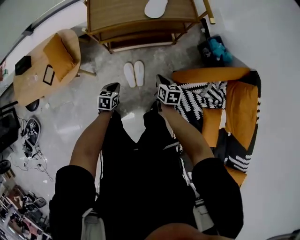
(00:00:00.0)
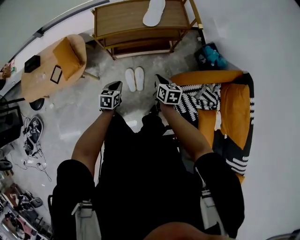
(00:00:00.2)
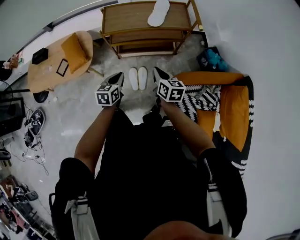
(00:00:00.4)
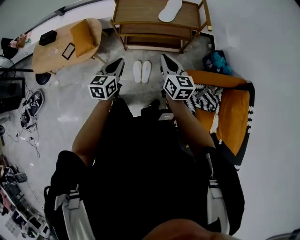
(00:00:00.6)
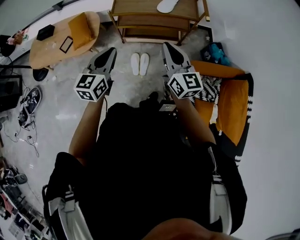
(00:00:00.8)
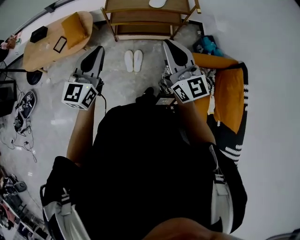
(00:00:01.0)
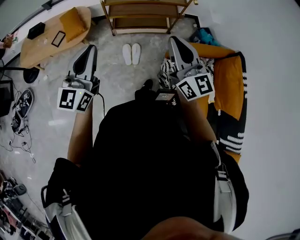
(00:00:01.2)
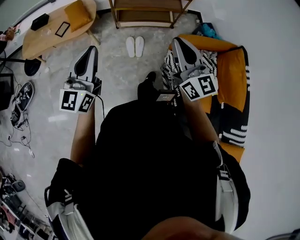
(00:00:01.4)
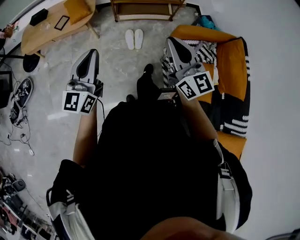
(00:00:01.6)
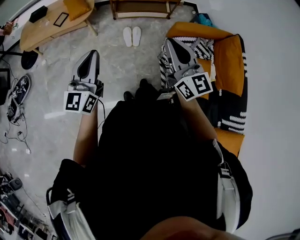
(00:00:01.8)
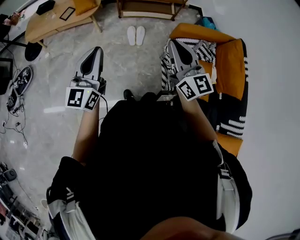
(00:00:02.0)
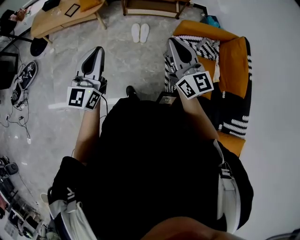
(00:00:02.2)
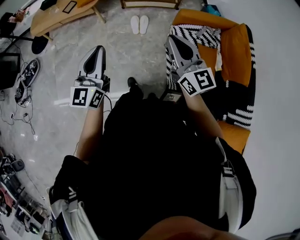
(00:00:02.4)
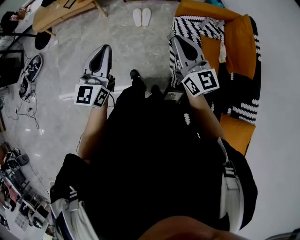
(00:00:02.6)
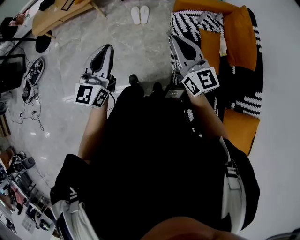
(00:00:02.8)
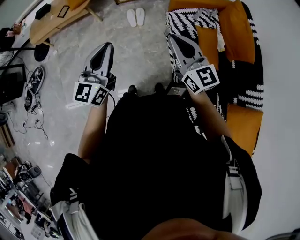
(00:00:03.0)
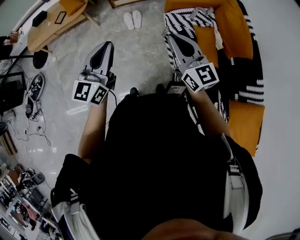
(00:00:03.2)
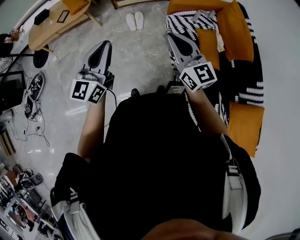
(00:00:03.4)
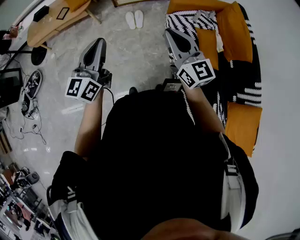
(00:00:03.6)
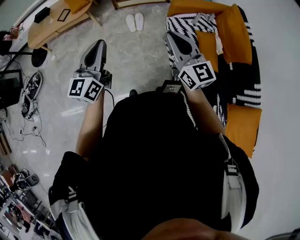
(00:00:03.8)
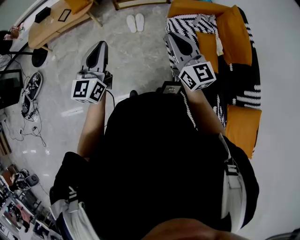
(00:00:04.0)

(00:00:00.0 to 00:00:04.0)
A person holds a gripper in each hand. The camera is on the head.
00:00:00.0 - 00:00:01.4: The two grippers go roughly 60 cm upward and backward. The left gripper tips its fingers upward by some 60 degrees. Meanwhile the right gripper angles its fingers upward, by about 60 degrees.
00:00:01.4 - 00:00:02.6: The two grippers go some 25 cm backward.
00:00:02.6 - 00:00:04.0: The right gripper shifts by some 5 cm.

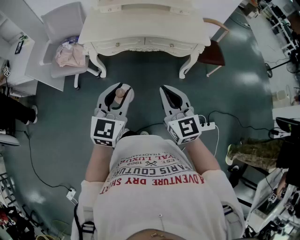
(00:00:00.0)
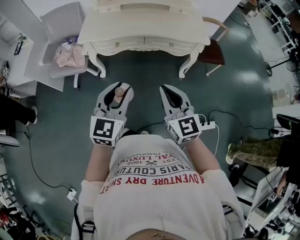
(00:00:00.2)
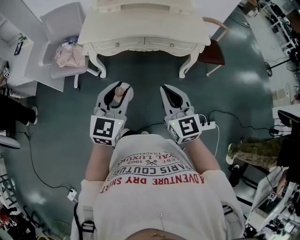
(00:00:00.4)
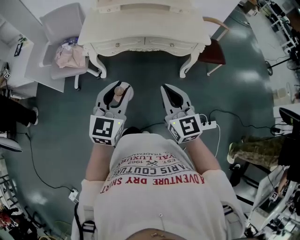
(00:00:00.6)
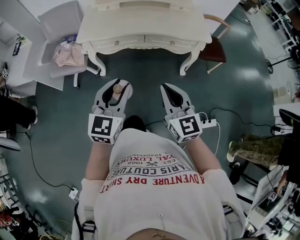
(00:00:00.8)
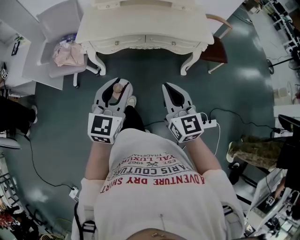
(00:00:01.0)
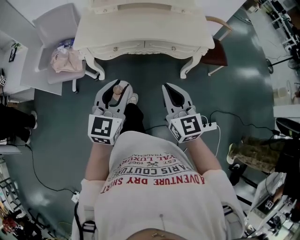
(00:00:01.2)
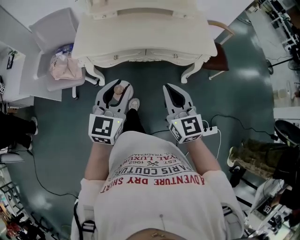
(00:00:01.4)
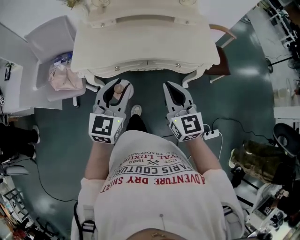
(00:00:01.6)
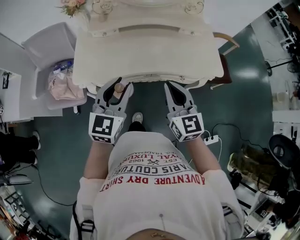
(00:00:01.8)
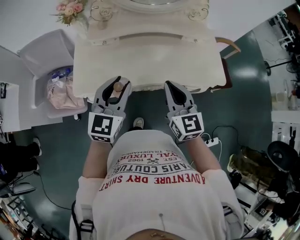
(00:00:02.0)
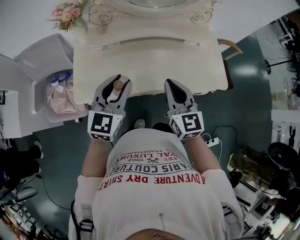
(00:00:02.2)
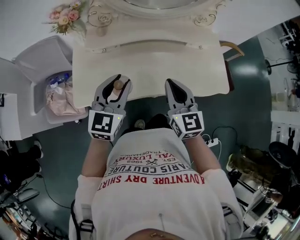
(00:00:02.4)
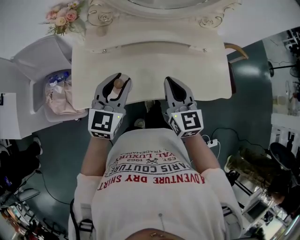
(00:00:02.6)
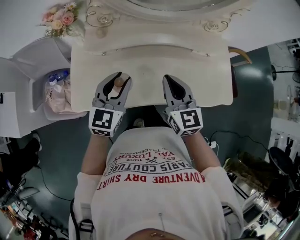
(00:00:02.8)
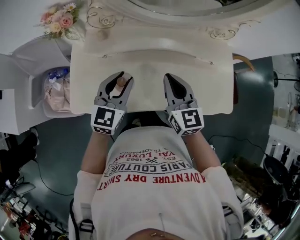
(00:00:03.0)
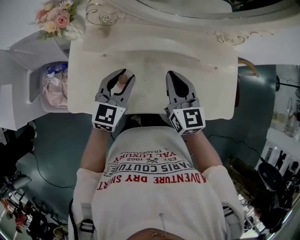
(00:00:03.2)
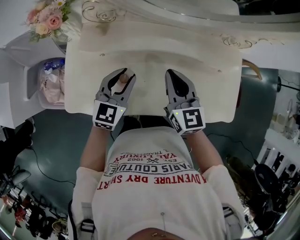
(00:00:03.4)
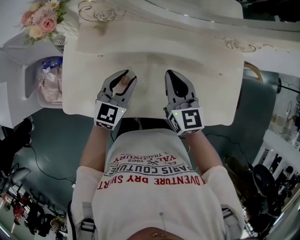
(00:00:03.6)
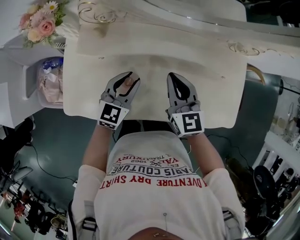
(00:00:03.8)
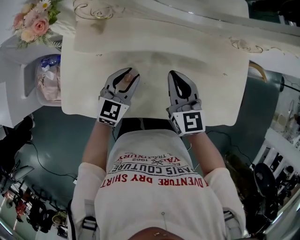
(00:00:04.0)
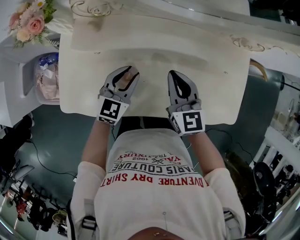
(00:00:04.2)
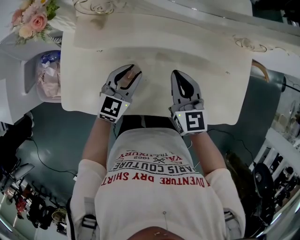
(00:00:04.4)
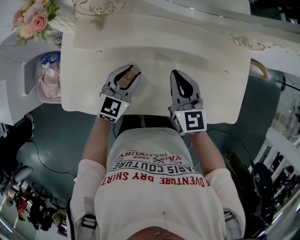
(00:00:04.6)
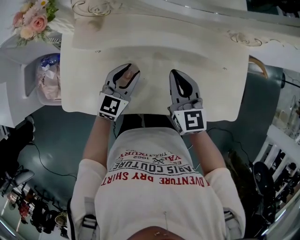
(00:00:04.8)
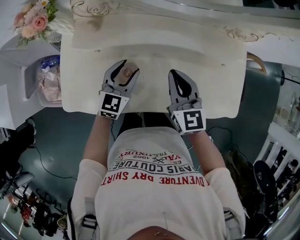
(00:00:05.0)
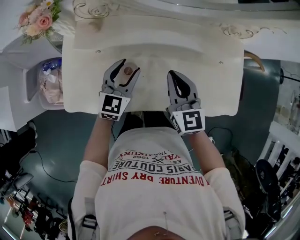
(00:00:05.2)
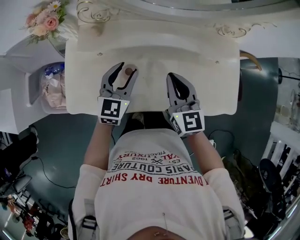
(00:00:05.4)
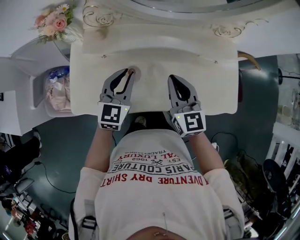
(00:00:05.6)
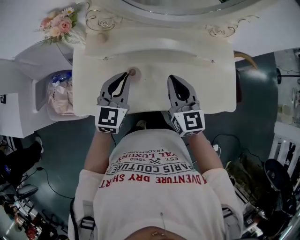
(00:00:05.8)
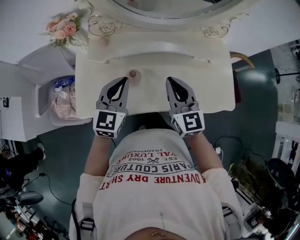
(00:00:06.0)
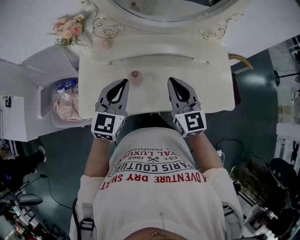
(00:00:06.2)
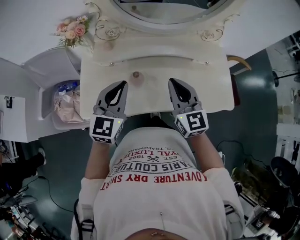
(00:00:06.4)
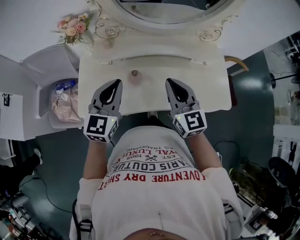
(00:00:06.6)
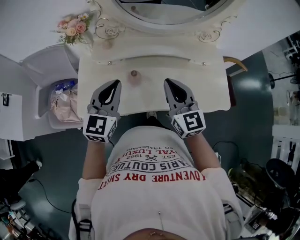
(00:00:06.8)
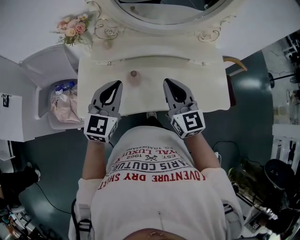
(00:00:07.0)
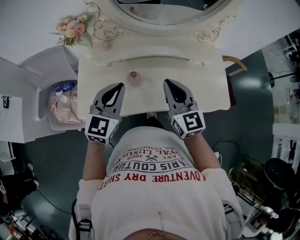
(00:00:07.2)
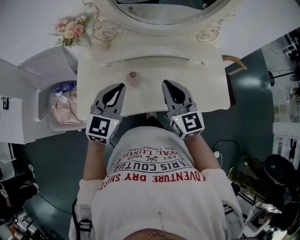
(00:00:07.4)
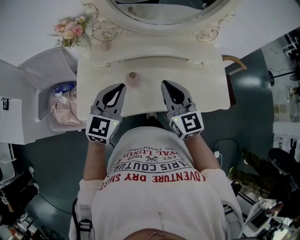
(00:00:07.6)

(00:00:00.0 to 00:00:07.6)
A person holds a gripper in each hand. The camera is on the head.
00:00:00.0 - 00:00:01.6: The grippers both shift forward by approximately 25 cm.
00:00:01.6 - 00:00:03.0: The two grippers go about 40 cm forward.
00:00:03.0 - 00:00:04.6: The left gripper moves downward, about 15 cm, while the right gripper is displaced downward and forward by about 10 cm.
00:00:04.6 - 00:00:06.0: The two grippers go some 15 cm upward and backward. The left gripper closes up.
00:00:06.0 - 00:00:07.6: The left gripper changes place by about 5 cm. Meanwhile the right gripper moves about 5 cm.

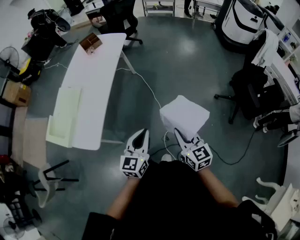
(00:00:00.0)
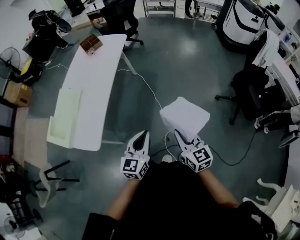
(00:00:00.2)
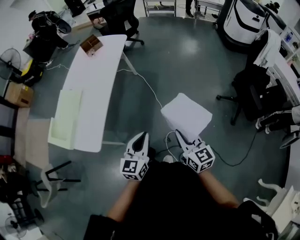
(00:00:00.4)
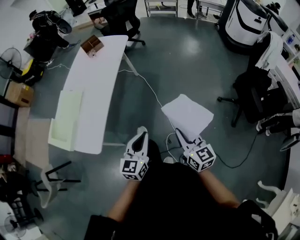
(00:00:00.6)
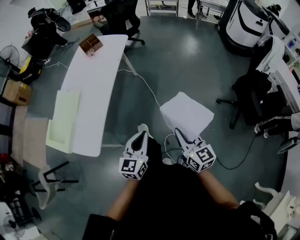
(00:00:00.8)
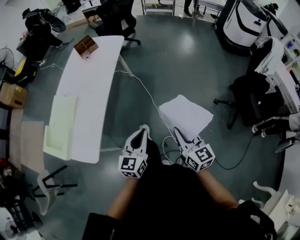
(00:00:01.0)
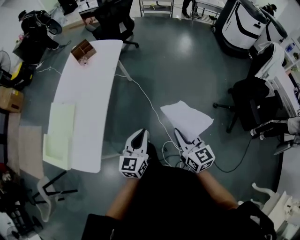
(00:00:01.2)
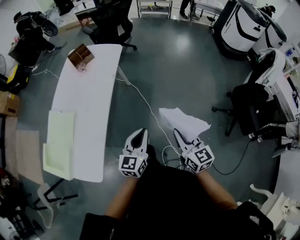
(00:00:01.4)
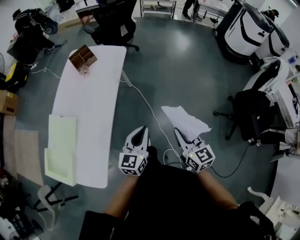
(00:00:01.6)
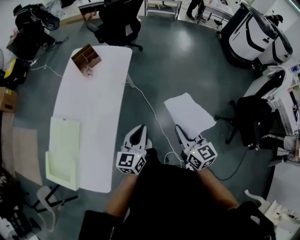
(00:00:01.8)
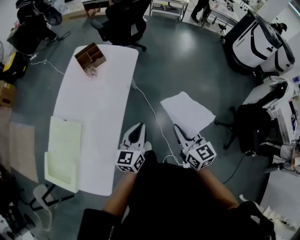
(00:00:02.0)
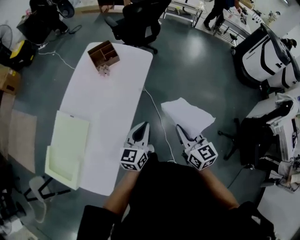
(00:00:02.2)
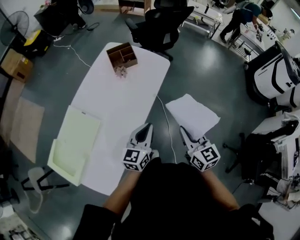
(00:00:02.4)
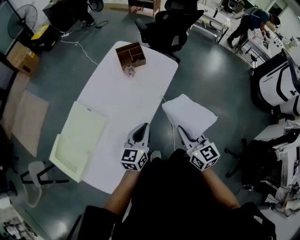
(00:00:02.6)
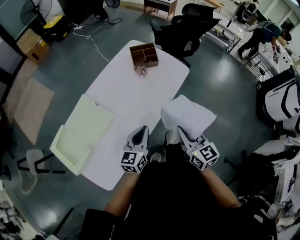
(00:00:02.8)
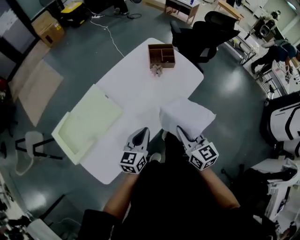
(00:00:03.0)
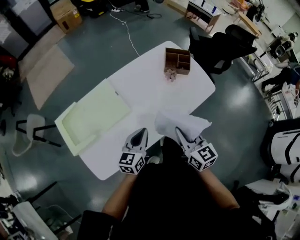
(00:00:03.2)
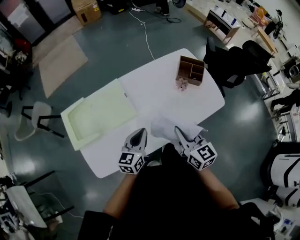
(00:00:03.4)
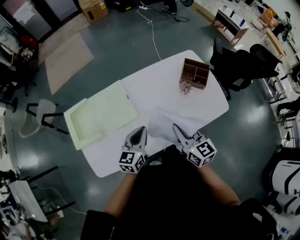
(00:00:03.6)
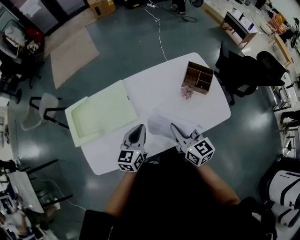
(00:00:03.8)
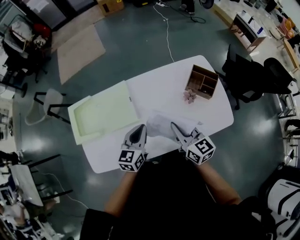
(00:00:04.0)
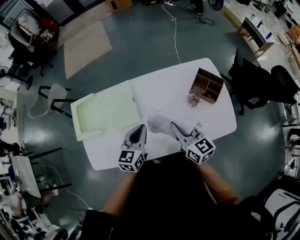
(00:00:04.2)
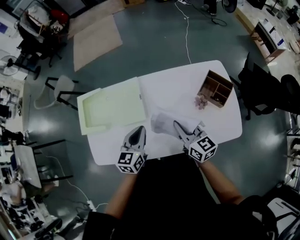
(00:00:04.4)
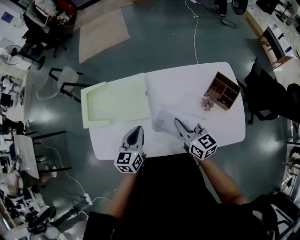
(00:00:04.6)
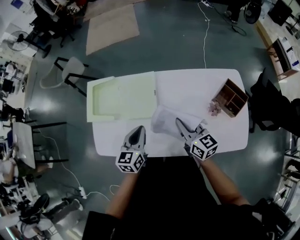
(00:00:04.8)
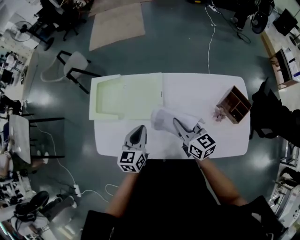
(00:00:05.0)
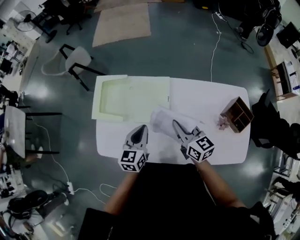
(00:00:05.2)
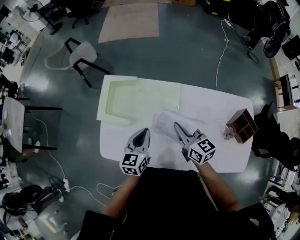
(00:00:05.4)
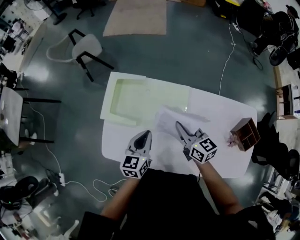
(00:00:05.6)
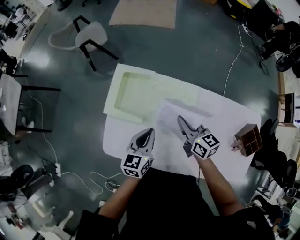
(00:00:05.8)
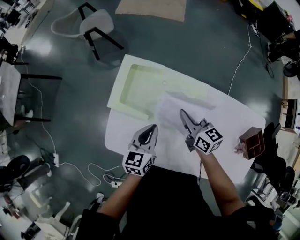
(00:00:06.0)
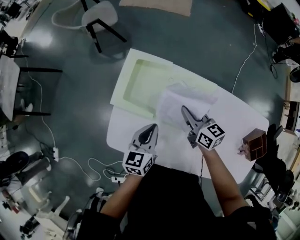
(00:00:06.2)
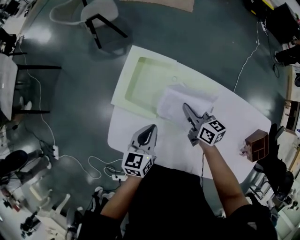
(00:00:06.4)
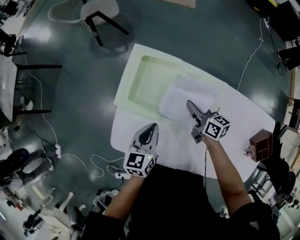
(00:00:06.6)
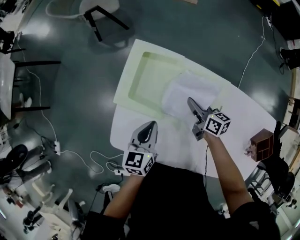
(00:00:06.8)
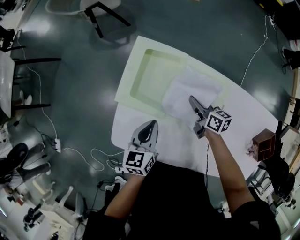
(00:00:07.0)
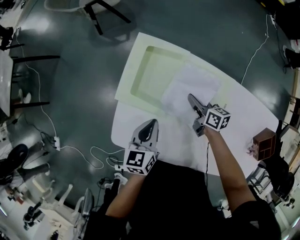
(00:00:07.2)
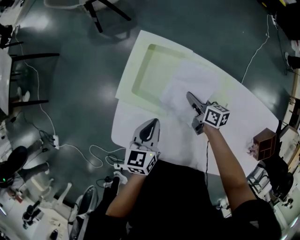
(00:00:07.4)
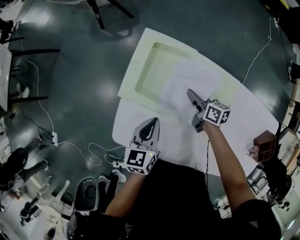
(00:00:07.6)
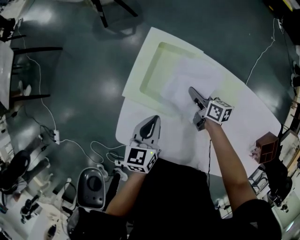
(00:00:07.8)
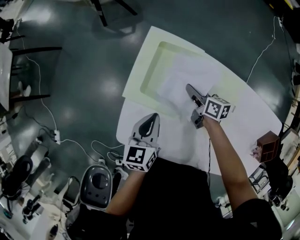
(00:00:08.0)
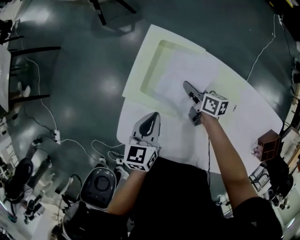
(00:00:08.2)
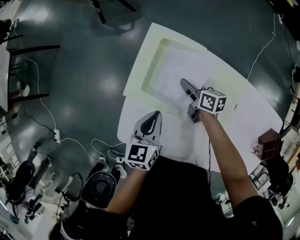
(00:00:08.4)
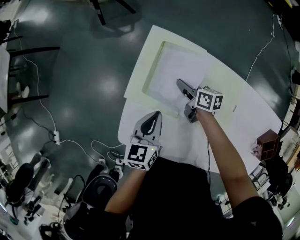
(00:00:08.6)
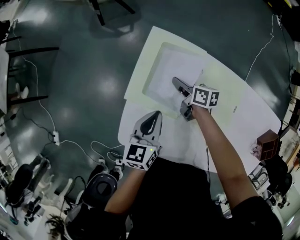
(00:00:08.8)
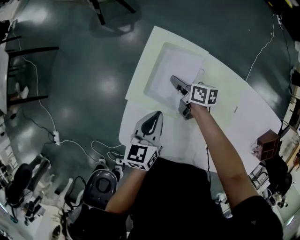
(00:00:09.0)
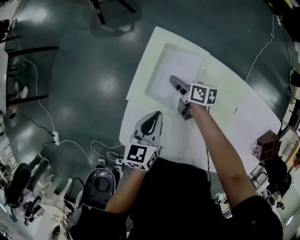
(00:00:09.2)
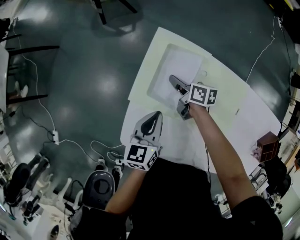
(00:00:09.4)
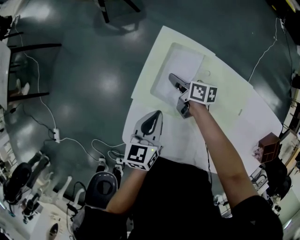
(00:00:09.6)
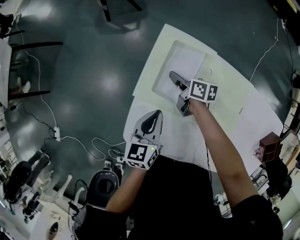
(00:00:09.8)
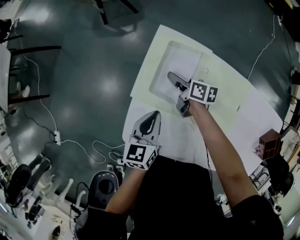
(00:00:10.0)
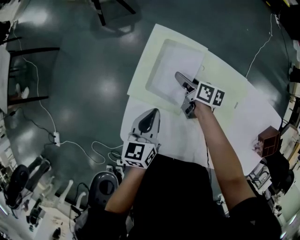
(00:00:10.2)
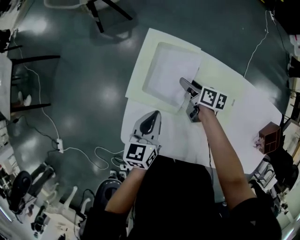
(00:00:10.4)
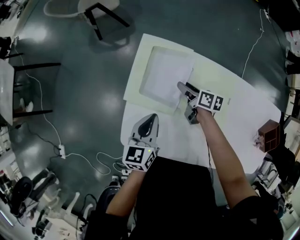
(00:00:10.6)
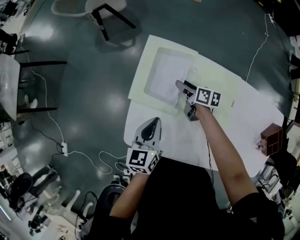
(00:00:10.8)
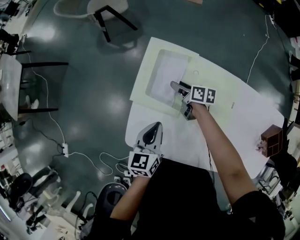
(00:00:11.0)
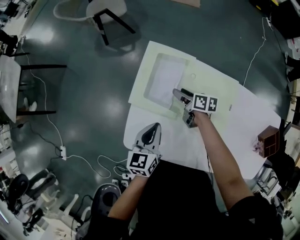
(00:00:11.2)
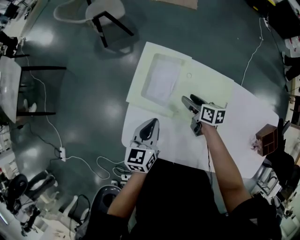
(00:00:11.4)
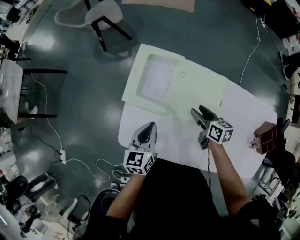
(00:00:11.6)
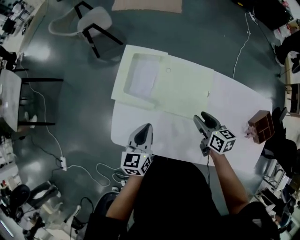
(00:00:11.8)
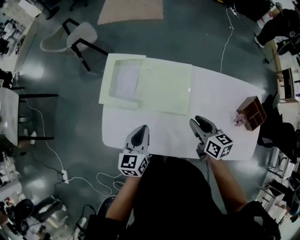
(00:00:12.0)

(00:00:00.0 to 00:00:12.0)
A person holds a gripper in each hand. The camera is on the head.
00:00:00.0 - 00:00:01.6: Both grippers travel together forward, about 30 cm.
00:00:01.6 - 00:00:03.0: The left gripper ends up roughly 30 cm from where it was, and rotates approximately 30 degrees; the right gripper changes place by about 35 cm, and changes its angle by approximately 40 degrees.
00:00:03.0 - 00:00:04.4: The left gripper ends up roughly 15 cm from where it was, and swivels approximately 40 degrees. Meanwhile the right gripper changes place by about 25 cm, and changes its angle by about 40 degrees.
00:00:04.4 - 00:00:06.0: The two grippers go roughly 35 cm to the left and forward. The right gripper rotates approximately 30 degrees, while the left gripper rotates roughly 20 degrees.
00:00:06.0 - 00:00:07.6: The left gripper heads downward and to the left, covering approximately 15 cm. Meanwhile the right gripper moves downward, some 20 cm, and changes its angle by roughly 30 degrees.
00:00:07.6 - 00:00:09.0: The right gripper goes approximately 15 cm to the left and forward. Meanwhile the left gripper moves about 5 cm.
00:00:09.0 - 00:00:10.4: The right gripper travels to the right by about 5 cm, and opens up.
00:00:10.4 - 00:00:12.0: The left gripper travels backward, to the right and upward by about 20 cm; the right gripper shifts approximately 40 cm backward, upward and to the right, turns by some 30 degrees, and closes.
